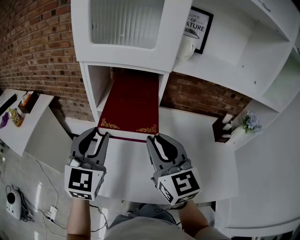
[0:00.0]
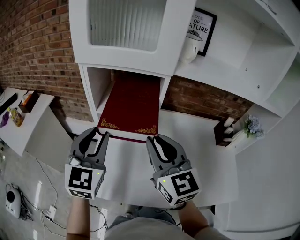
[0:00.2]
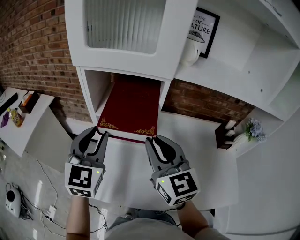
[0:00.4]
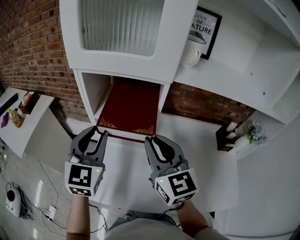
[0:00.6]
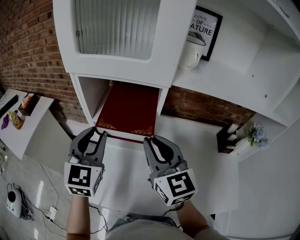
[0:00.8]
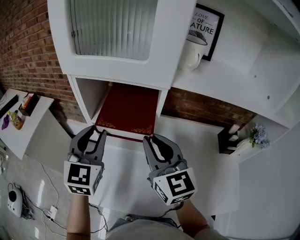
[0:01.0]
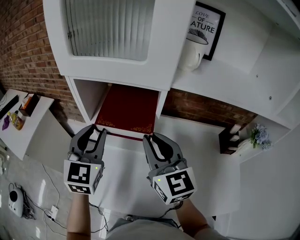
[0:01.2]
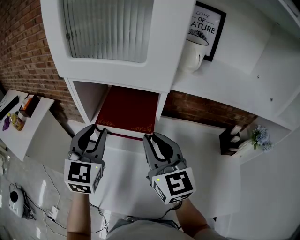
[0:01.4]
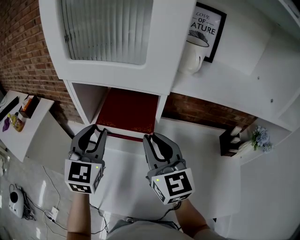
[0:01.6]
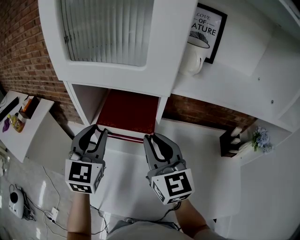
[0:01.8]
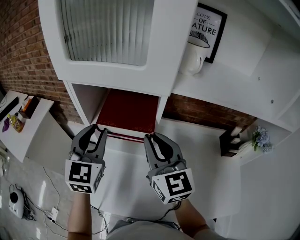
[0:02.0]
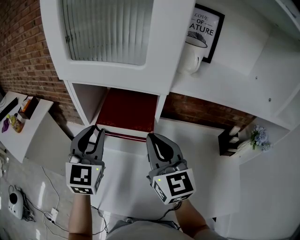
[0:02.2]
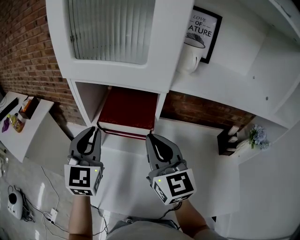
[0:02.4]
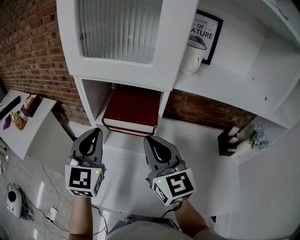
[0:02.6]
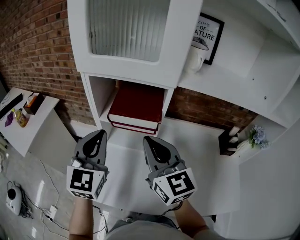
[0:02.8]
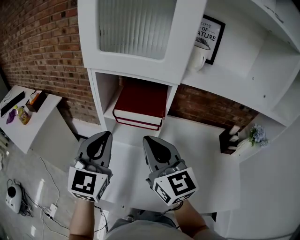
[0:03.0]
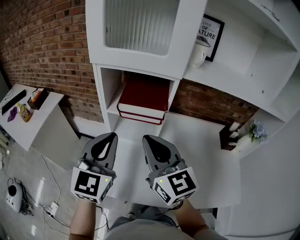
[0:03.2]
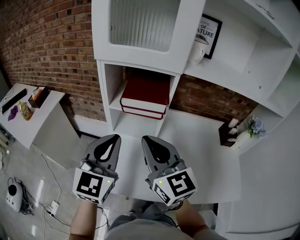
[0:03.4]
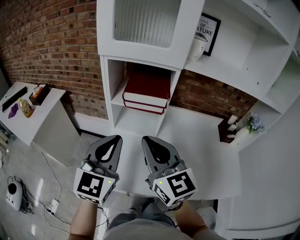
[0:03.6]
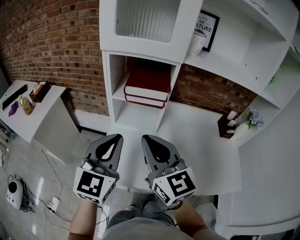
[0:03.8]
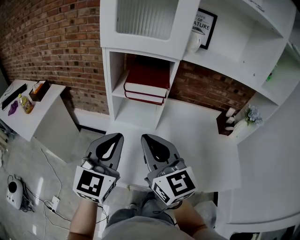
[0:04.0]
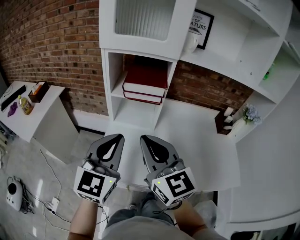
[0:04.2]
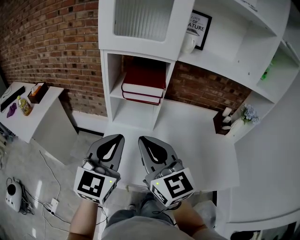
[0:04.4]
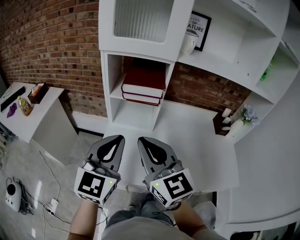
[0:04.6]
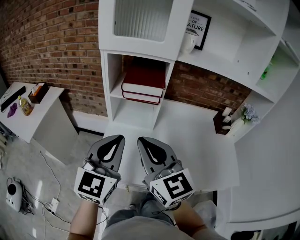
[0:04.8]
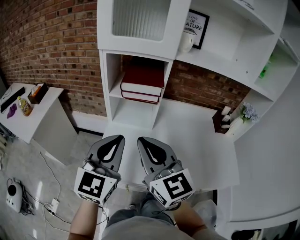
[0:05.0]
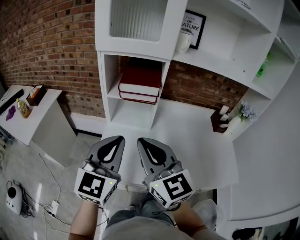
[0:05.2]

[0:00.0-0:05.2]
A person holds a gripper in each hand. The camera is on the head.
0:00.0 to 0:01.8: The two grippers go roughly 10 cm forward.
0:01.8 to 0:03.4: The right gripper shifts roughly 15 cm backward and to the left; the left gripper shifts roughly 15 cm backward, and closes up.
0:03.4 to 0:05.2: Both grippers travel together backward, approximately 10 cm.

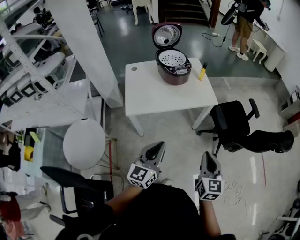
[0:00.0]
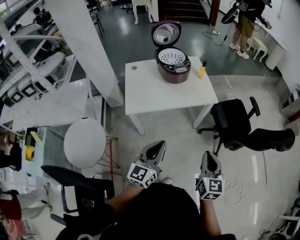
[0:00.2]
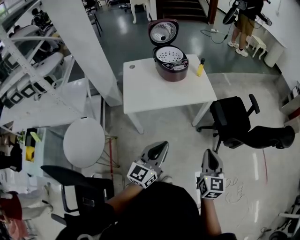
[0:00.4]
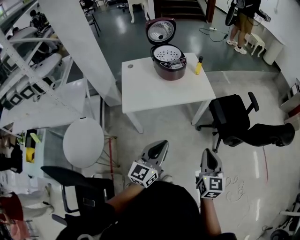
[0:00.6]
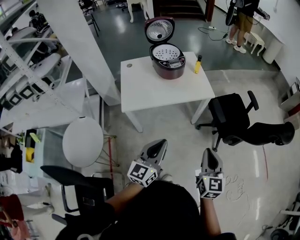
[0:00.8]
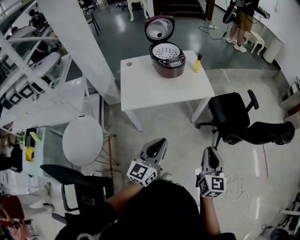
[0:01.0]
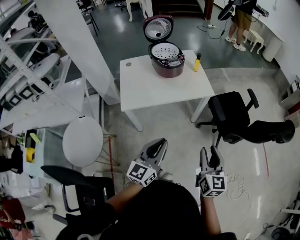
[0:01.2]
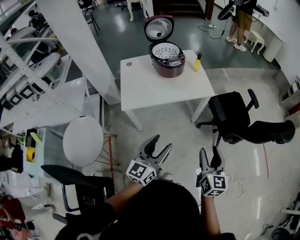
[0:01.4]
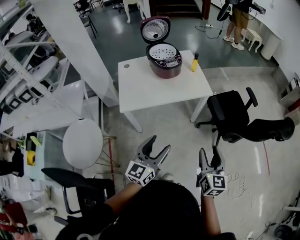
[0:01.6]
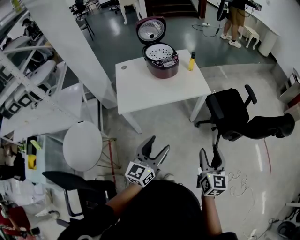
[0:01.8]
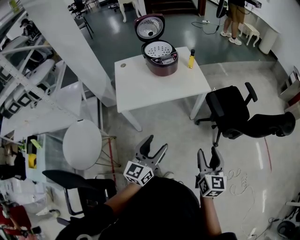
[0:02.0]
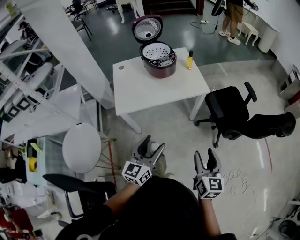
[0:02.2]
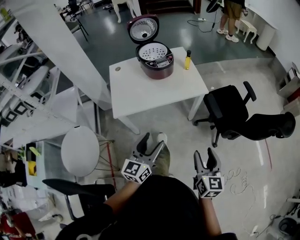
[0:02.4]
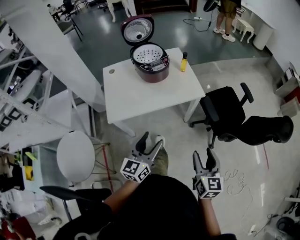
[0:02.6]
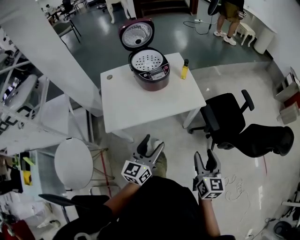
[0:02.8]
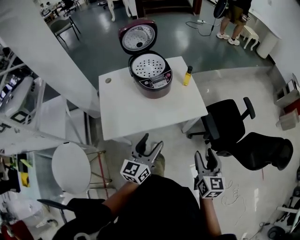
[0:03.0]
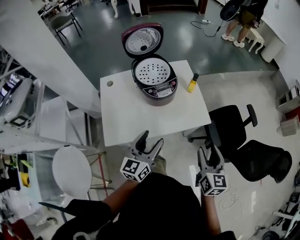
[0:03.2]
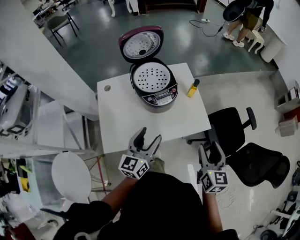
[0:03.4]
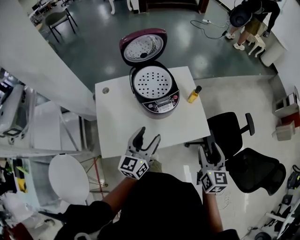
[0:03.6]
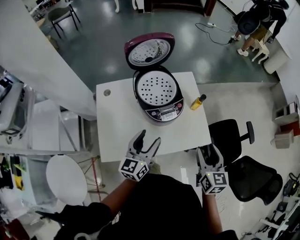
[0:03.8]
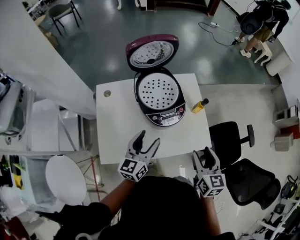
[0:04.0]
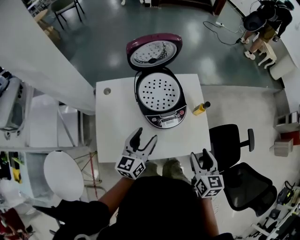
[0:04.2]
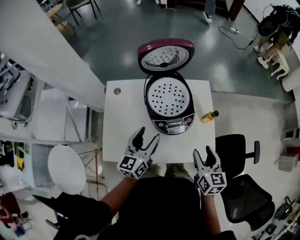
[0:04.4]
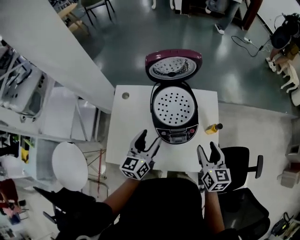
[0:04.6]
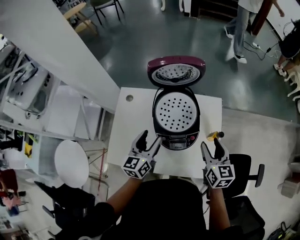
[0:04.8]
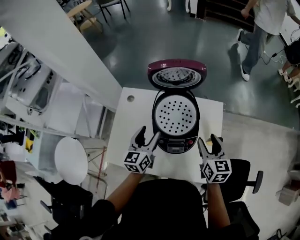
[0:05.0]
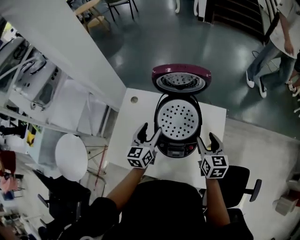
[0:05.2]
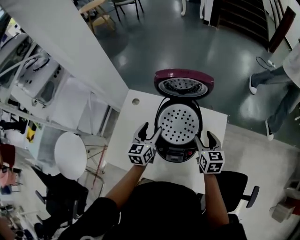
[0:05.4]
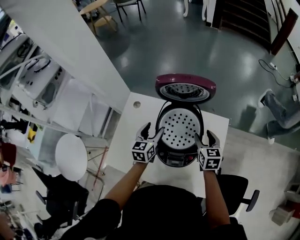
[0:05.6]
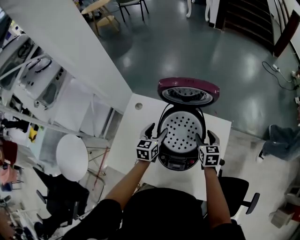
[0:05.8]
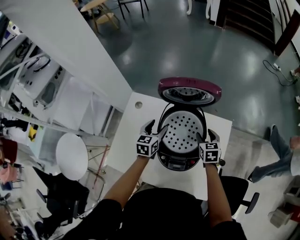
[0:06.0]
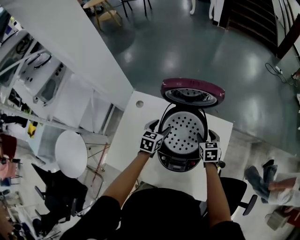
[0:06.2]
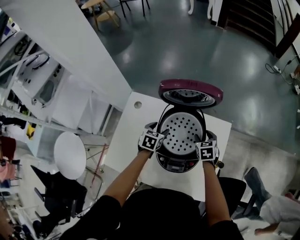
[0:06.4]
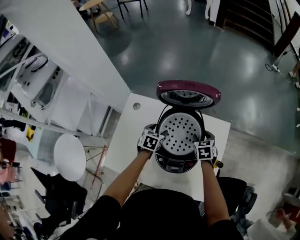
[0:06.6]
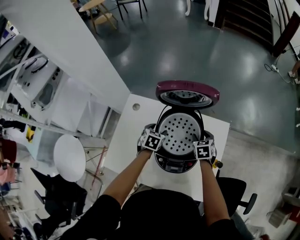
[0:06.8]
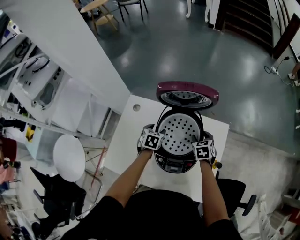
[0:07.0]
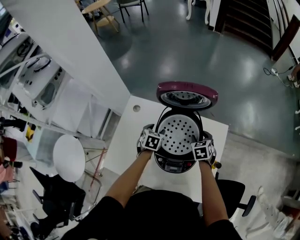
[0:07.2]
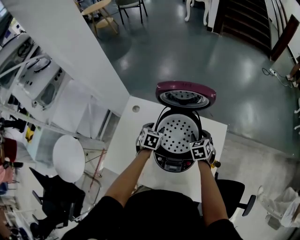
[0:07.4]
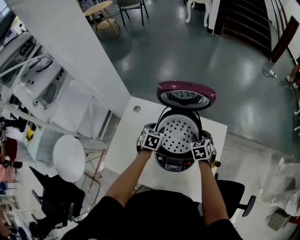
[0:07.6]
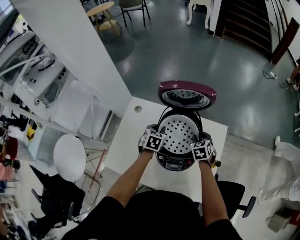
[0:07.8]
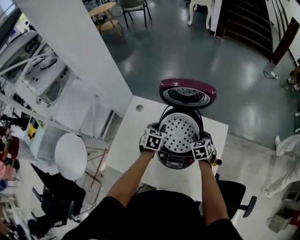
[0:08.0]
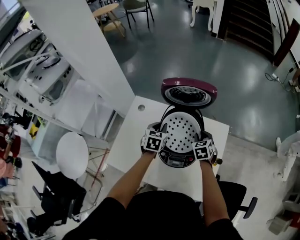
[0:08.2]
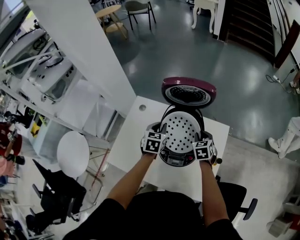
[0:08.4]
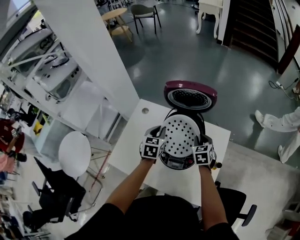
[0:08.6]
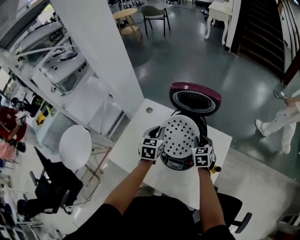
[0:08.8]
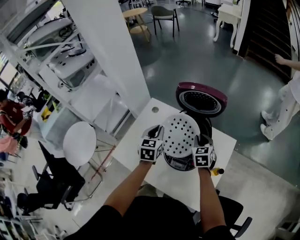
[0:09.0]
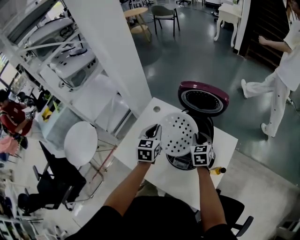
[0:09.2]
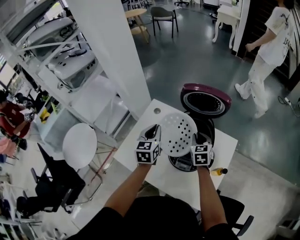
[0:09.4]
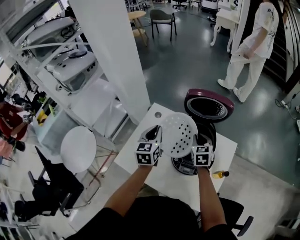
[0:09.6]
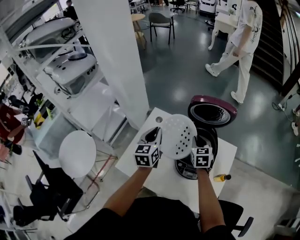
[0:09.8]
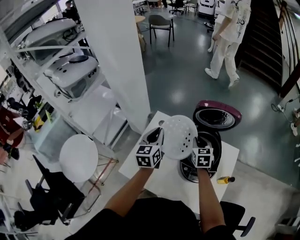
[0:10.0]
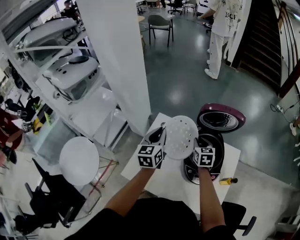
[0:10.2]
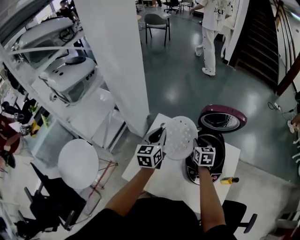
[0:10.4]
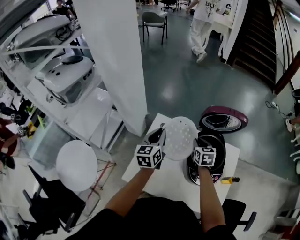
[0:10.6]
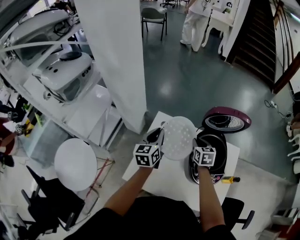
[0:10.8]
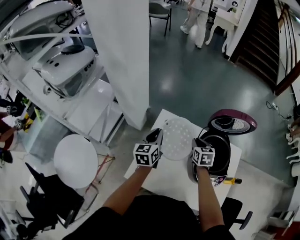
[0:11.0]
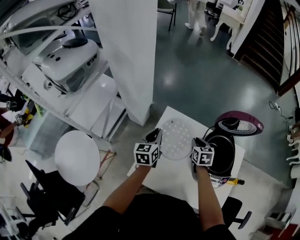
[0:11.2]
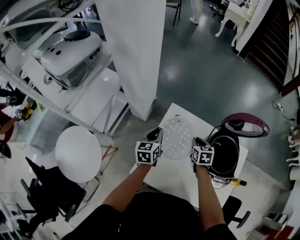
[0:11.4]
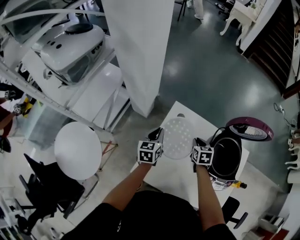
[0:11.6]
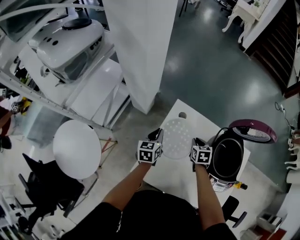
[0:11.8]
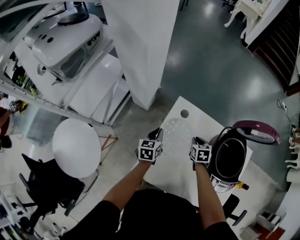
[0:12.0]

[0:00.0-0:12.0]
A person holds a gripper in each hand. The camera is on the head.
0:00.0 to 0:01.6: The right gripper moves to the right, approximately 5 cm, and opens. The left gripper opens its fingers.
0:01.6 to 0:03.0: Both grippers travel together forward, roughly 25 cm.
0:03.0 to 0:04.4: The left gripper heads forward and to the left, covering approximately 30 cm; the right gripper travels forward by some 35 cm, and rotates roughly 20 degrees.
0:04.4 to 0:06.0: The two grippers go approximately 30 cm forward and downward. The right gripper turns by approximately 30 degrees; the left gripper rotates some 30 degrees.
0:06.0 to 0:07.6: The left gripper rotates about 20 degrees.
0:07.6 to 0:09.0: The right gripper goes some 10 cm upward and to the left; the left gripper moves upward and backward, roughly 15 cm, swivels some 30 degrees, and closes its fingers.
0:09.0 to 0:10.4: The right gripper moves to the left and forward, roughly 15 cm. Meanwhile the left gripper moves to the left, forward and upward, about 15 cm, and changes its angle by some 20 degrees.
0:10.4 to 0:12.0: The two grippers go roughly 25 cm downward and to the left. The right gripper turns by approximately 20 degrees; the left gripper turns by roughly 20 degrees.

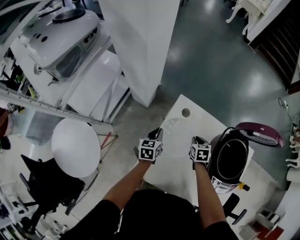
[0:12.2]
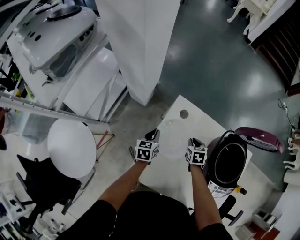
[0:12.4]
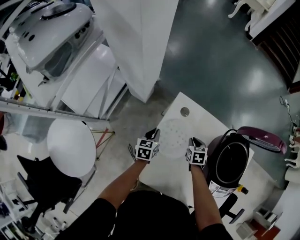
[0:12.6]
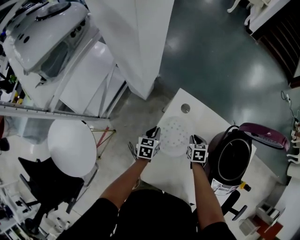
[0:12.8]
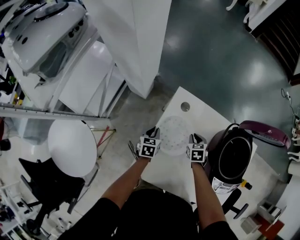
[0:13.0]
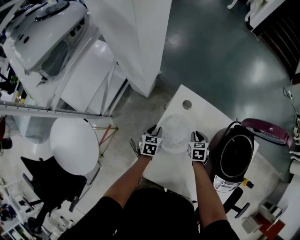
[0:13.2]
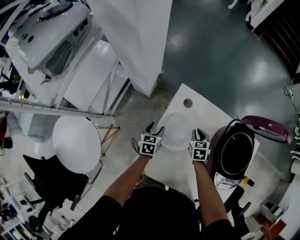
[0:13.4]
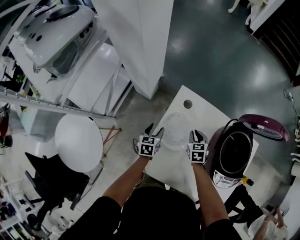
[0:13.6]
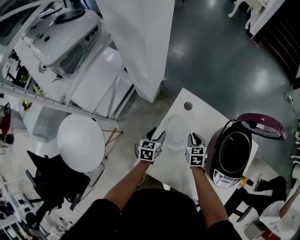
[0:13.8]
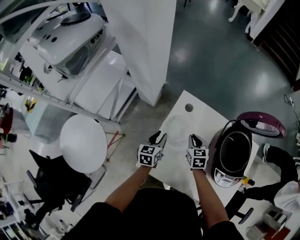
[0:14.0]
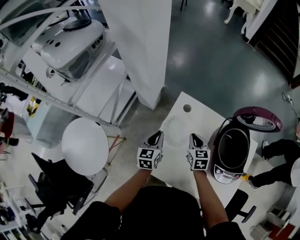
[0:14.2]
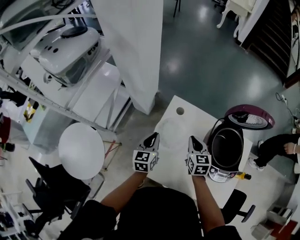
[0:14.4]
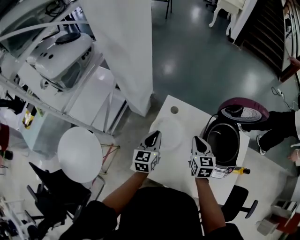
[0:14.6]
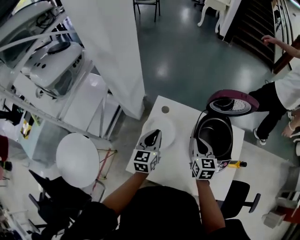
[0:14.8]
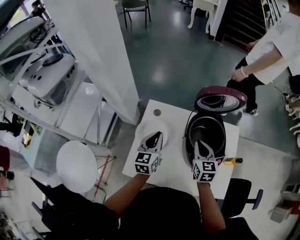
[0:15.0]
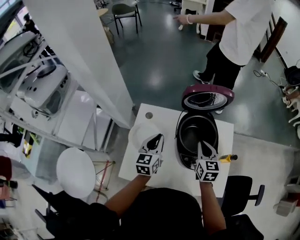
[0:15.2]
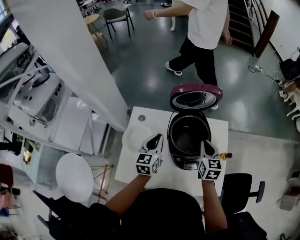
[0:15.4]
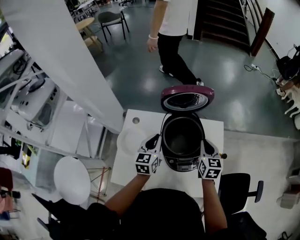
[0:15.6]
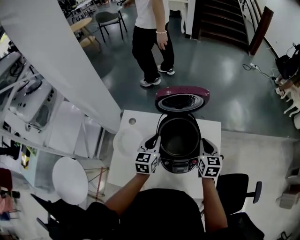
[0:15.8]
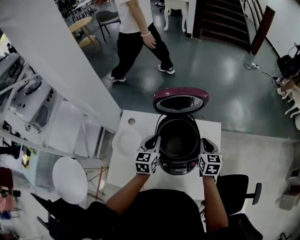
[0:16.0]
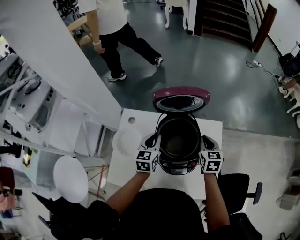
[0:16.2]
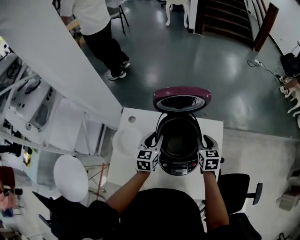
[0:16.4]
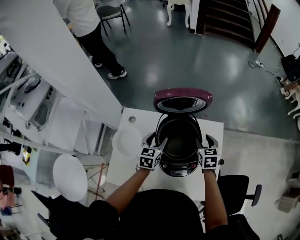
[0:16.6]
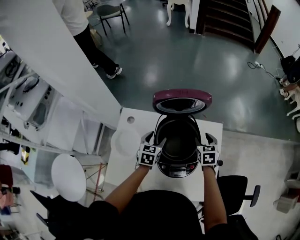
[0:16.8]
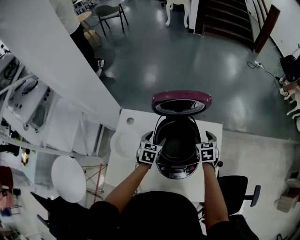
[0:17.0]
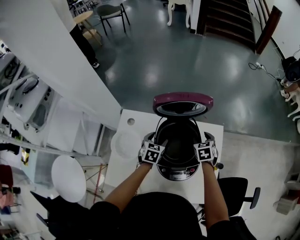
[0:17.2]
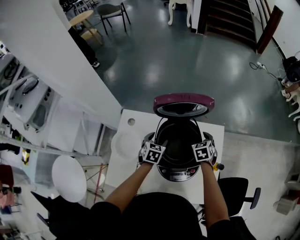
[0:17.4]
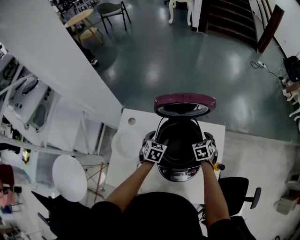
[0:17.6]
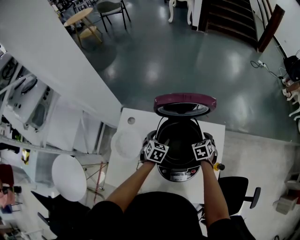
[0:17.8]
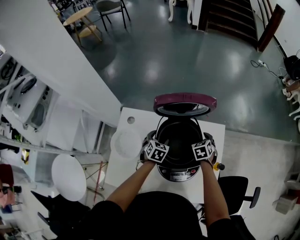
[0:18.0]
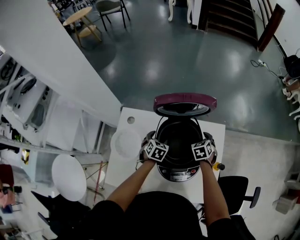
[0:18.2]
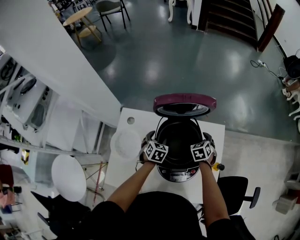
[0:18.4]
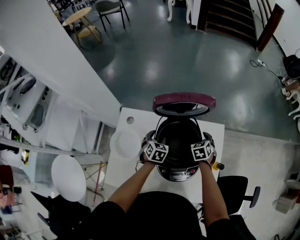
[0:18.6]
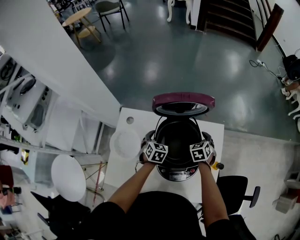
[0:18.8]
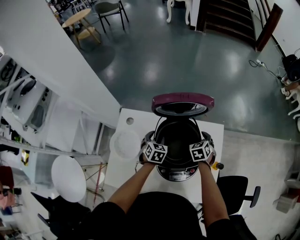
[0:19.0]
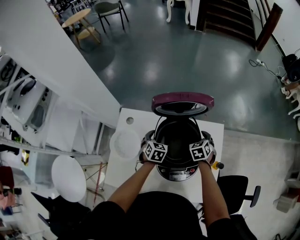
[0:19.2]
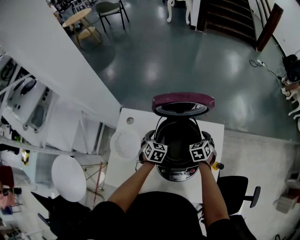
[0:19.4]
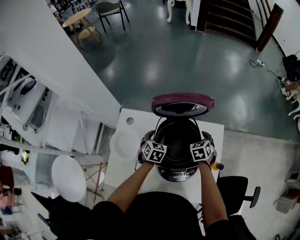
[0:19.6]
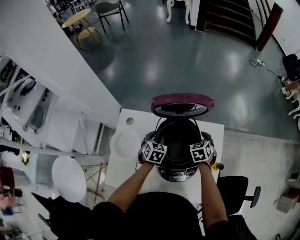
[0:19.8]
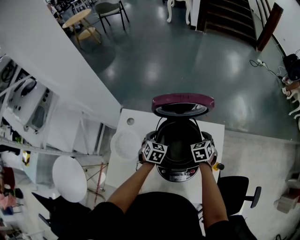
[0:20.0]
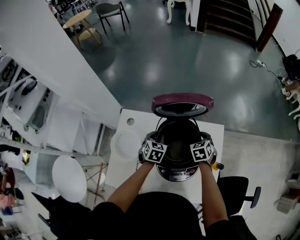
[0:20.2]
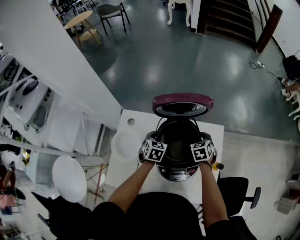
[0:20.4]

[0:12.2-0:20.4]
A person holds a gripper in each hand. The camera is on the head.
0:12.2 to 0:13.8: The left gripper goes downward and returns, some 10 cm each way, and opens up, while the right gripper changes place by some 5 cm.
0:13.8 to 0:15.4: The grippers both shift to the right and upward by about 35 cm. The left gripper rotates roughly 30 degrees, and closes. Meanwhile the right gripper turns by some 40 degrees.
0:15.4 to 0:17.2: Both grippers travel together downward, forward and to the right, approximately 20 cm. The left gripper swivels roughly 30 degrees, and opens, while the right gripper turns by some 30 degrees, and opens up.
0:17.2 to 0:18.8: The grippers stay close to where they were, moving slightly.
0:18.8 to 0:20.4: The left gripper closes up, while the right gripper closes up.
